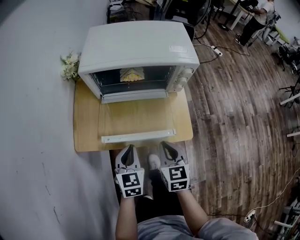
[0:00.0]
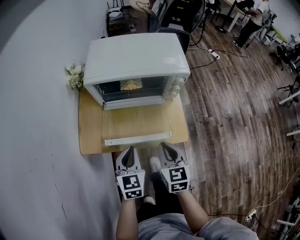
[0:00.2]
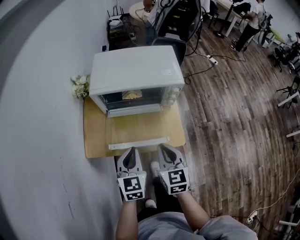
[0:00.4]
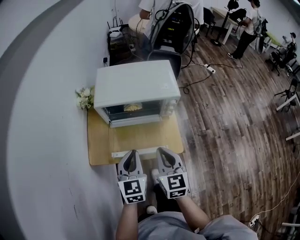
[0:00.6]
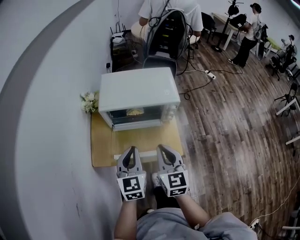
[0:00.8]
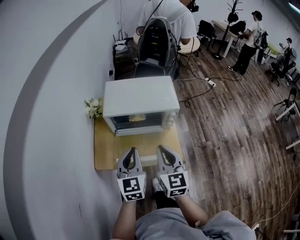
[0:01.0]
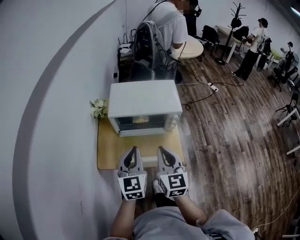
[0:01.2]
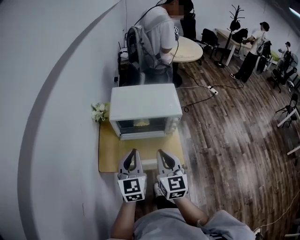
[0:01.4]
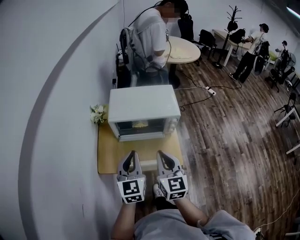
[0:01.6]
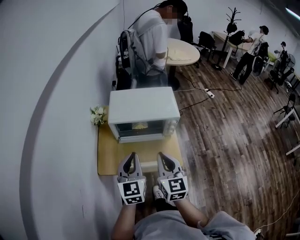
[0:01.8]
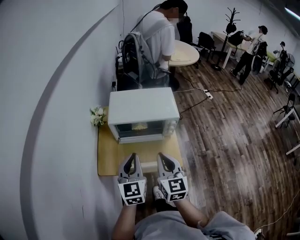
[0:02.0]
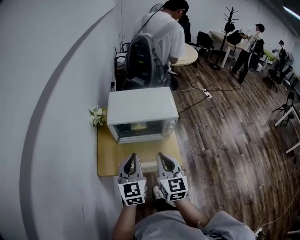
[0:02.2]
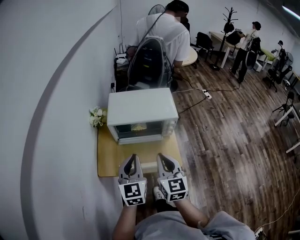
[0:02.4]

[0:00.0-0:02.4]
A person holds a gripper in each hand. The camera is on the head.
0:00.0 to 0:01.2: Both grippers travel together upward, about 30 cm. The right gripper swivels about 20 degrees; the left gripper turns by some 20 degrees.
0:01.2 to 0:02.4: The grippers stay close to where they were, moving slightly.

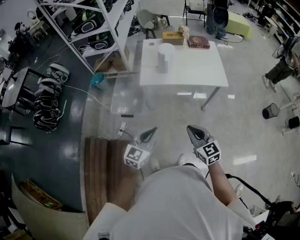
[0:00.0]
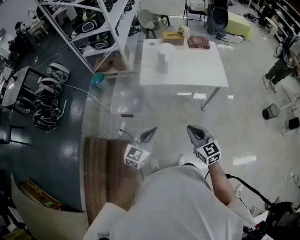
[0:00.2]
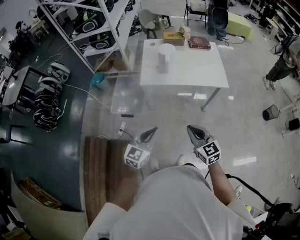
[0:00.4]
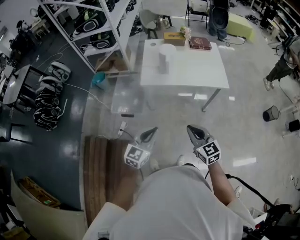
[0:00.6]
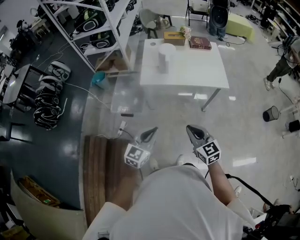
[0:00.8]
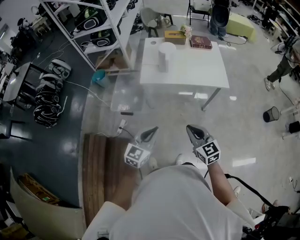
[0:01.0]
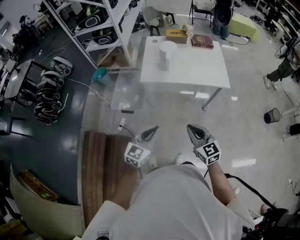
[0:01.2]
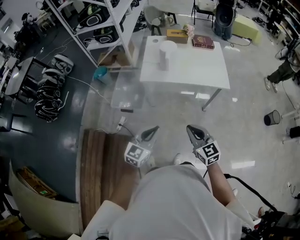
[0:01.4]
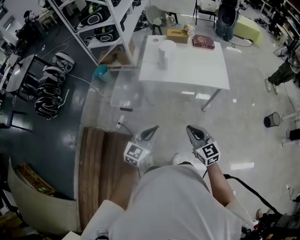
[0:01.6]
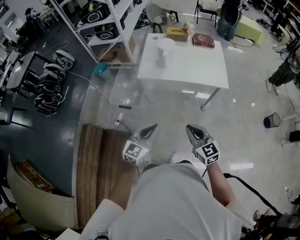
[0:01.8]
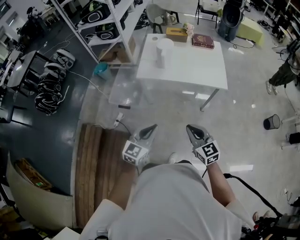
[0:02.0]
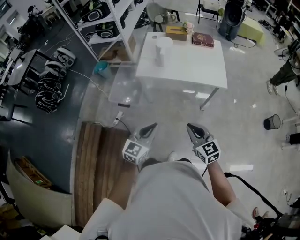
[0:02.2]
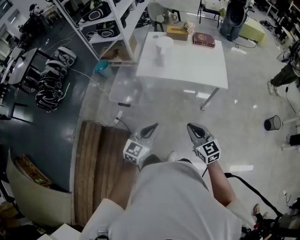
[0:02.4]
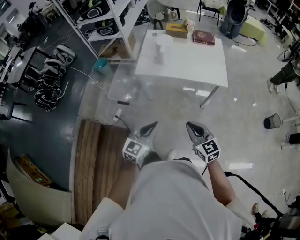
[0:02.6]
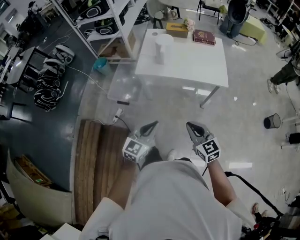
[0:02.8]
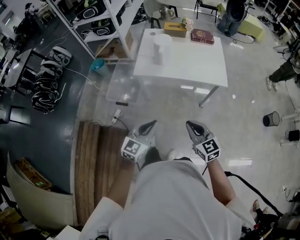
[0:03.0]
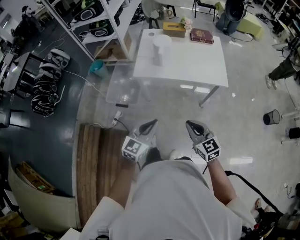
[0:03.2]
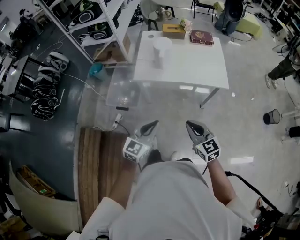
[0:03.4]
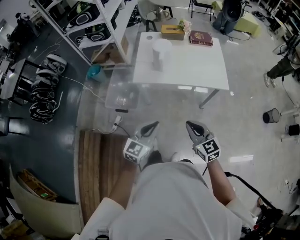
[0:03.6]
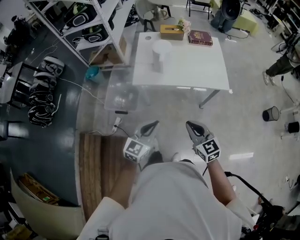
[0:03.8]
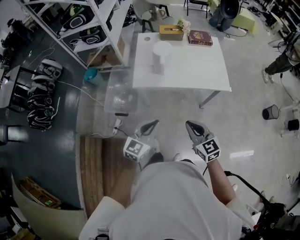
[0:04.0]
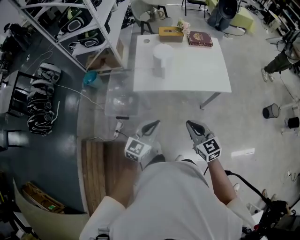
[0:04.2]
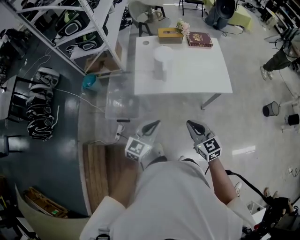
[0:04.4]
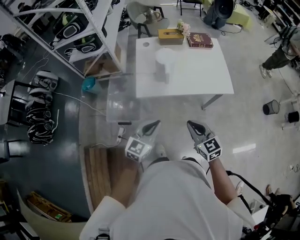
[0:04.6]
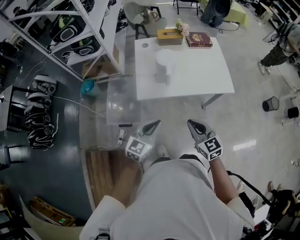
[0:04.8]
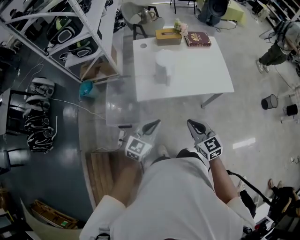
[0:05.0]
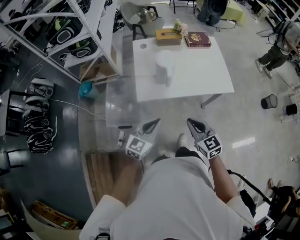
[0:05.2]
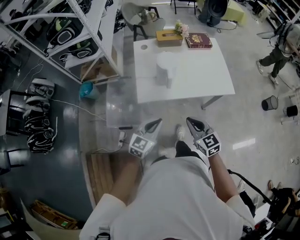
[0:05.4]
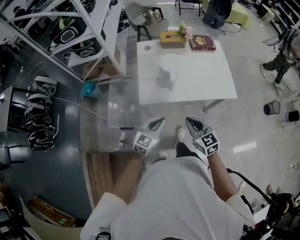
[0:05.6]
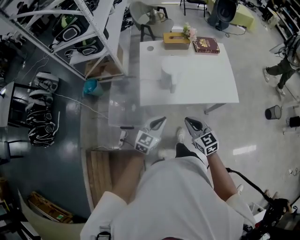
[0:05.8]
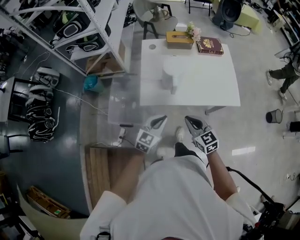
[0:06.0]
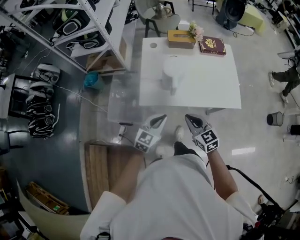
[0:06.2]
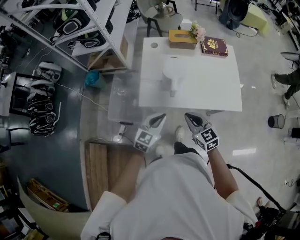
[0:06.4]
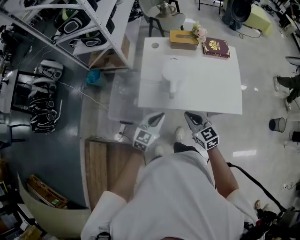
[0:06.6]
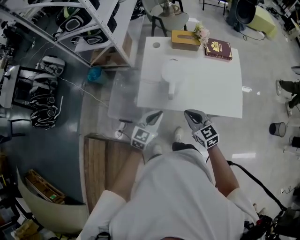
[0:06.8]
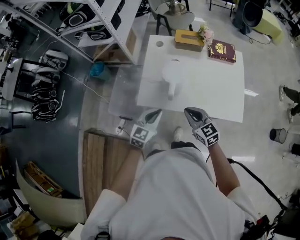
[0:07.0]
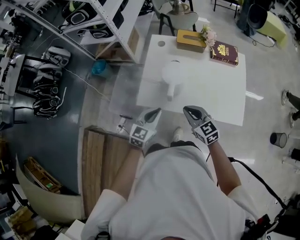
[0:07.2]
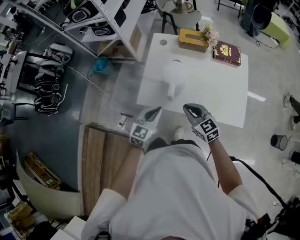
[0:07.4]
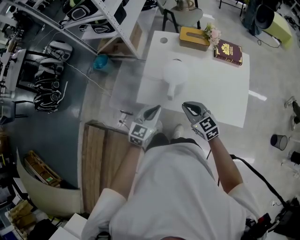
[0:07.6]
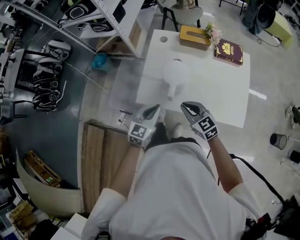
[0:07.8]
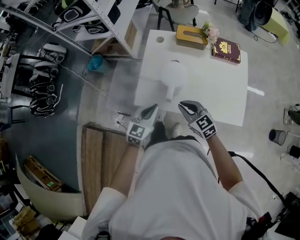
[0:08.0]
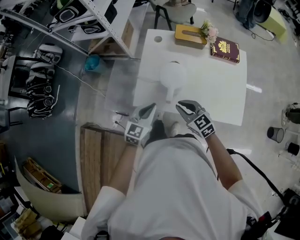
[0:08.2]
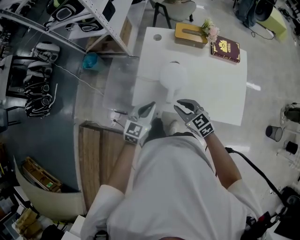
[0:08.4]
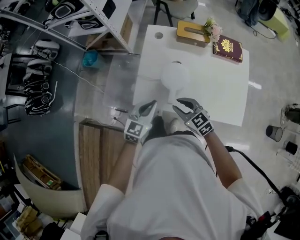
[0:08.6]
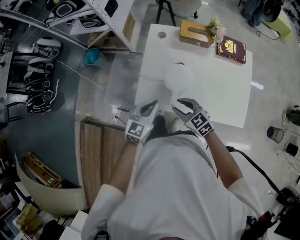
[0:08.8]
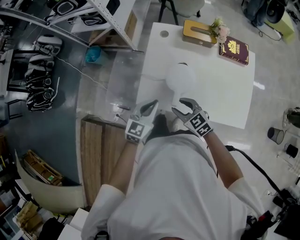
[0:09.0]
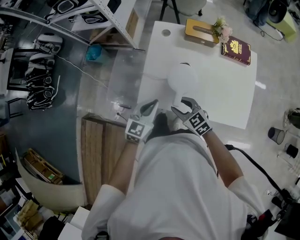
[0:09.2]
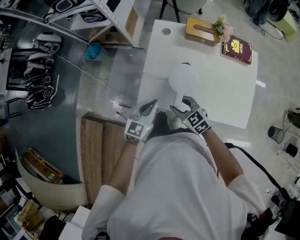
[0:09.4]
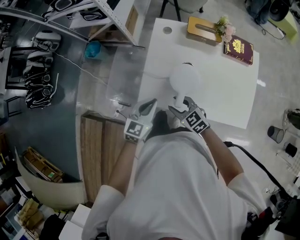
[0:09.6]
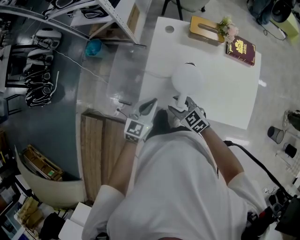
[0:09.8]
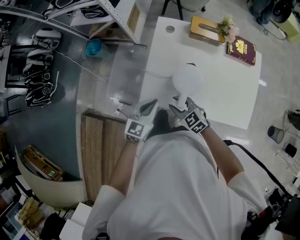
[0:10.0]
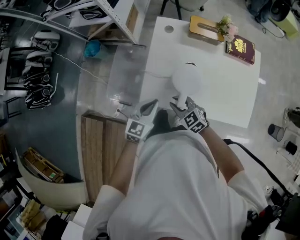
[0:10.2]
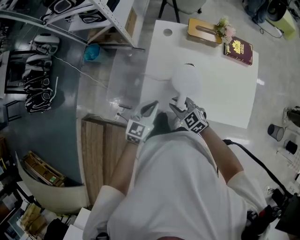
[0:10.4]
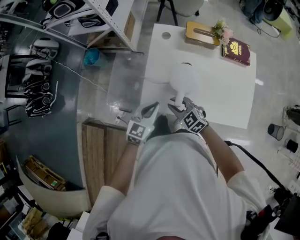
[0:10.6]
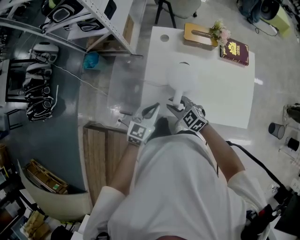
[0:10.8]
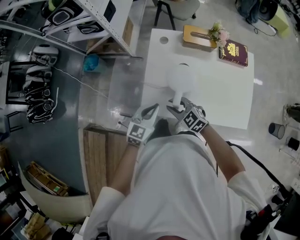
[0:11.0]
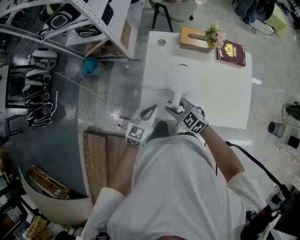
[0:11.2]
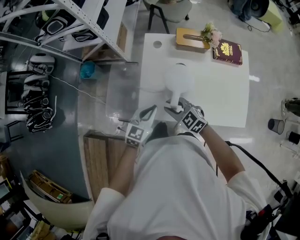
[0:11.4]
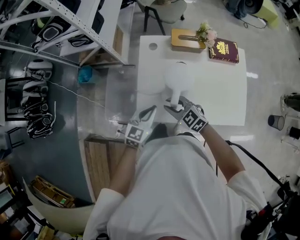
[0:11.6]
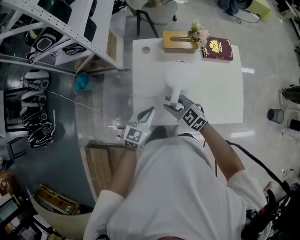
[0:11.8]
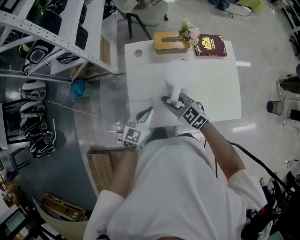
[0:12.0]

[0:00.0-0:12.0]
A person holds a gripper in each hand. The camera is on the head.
0:00.0 to 0:01.6: The two grippers go approximately 5 cm to the right.
0:01.6 to 0:03.0: The right gripper shifts by approximately 5 cm. Meanwhile the left gripper ends up roughly 5 cm from where it was.
0:03.0 to 0:04.4: Both grippers travel together forward and to the left, roughly 20 cm.
0:04.4 to 0:06.0: The right gripper moves forward, some 15 cm. The left gripper goes approximately 15 cm forward and downward.
0:06.0 to 0:07.6: The grippers both shift forward by roughly 15 cm.
0:07.6 to 0:09.0: The right gripper travels downward, forward and to the left by about 10 cm, and opens up. The left gripper goes some 10 cm forward.
0:09.0 to 0:10.4: The right gripper changes place by roughly 5 cm, and closes.
0:10.4 to 0:12.0: The right gripper shifts roughly 15 cm to the right, forward and upward, while the left gripper is displaced to the right and forward by roughly 10 cm.

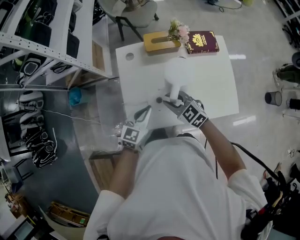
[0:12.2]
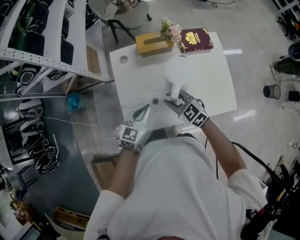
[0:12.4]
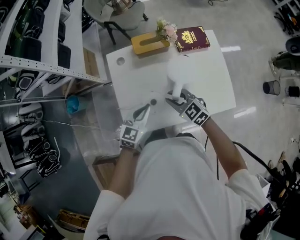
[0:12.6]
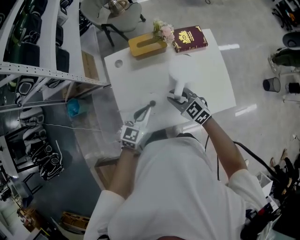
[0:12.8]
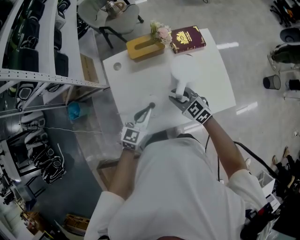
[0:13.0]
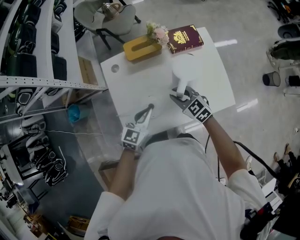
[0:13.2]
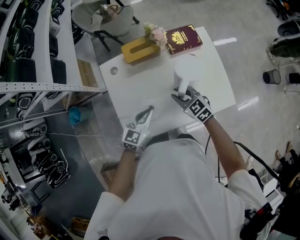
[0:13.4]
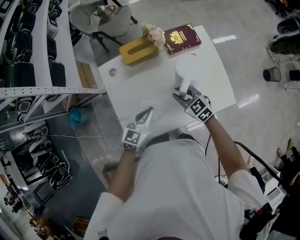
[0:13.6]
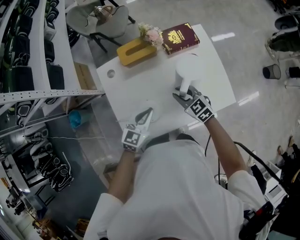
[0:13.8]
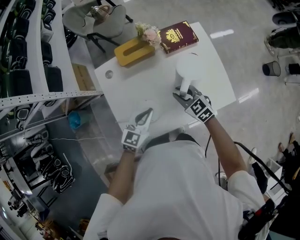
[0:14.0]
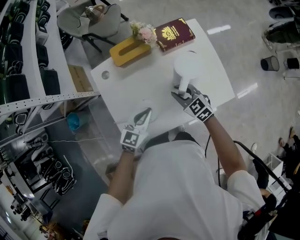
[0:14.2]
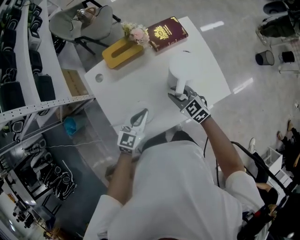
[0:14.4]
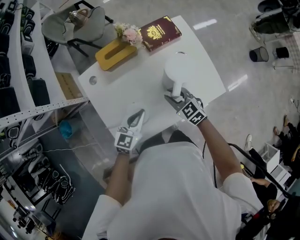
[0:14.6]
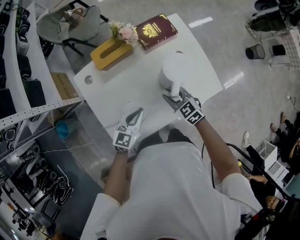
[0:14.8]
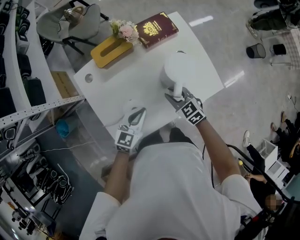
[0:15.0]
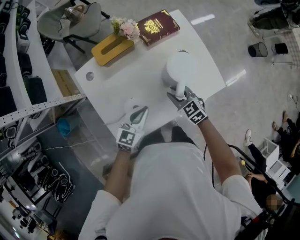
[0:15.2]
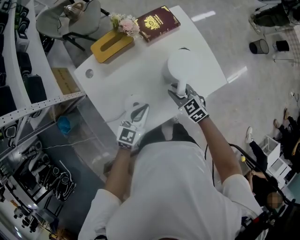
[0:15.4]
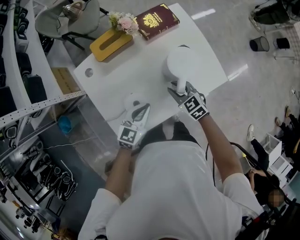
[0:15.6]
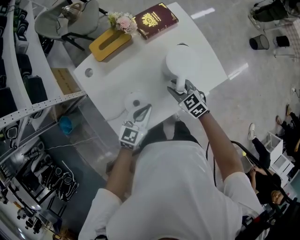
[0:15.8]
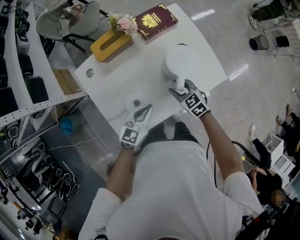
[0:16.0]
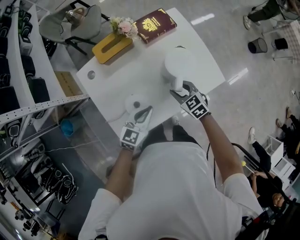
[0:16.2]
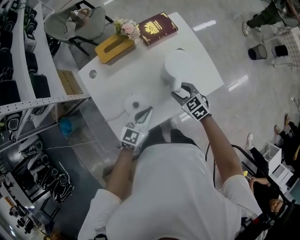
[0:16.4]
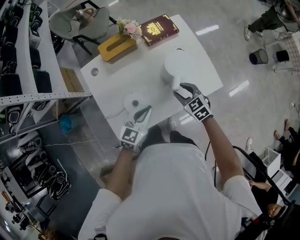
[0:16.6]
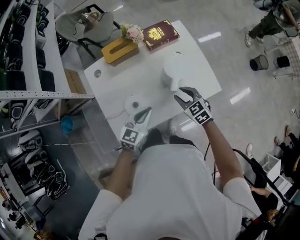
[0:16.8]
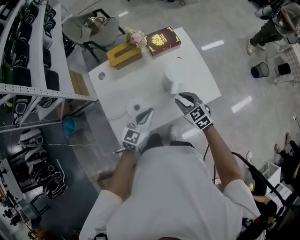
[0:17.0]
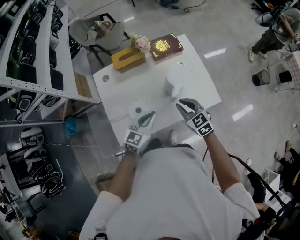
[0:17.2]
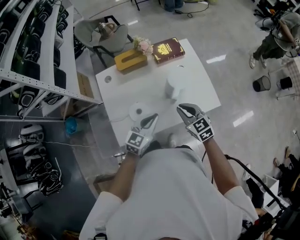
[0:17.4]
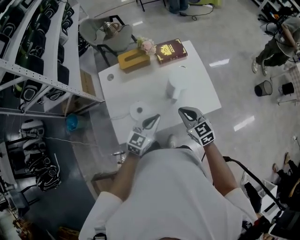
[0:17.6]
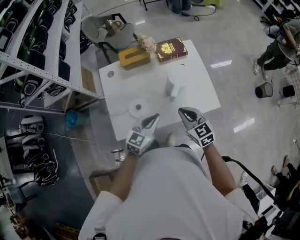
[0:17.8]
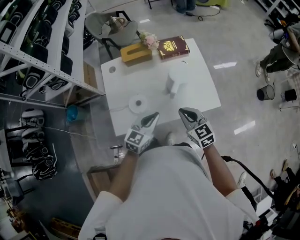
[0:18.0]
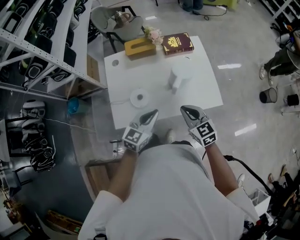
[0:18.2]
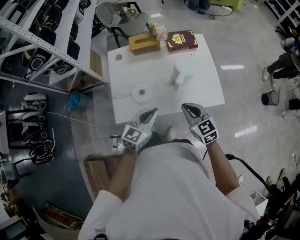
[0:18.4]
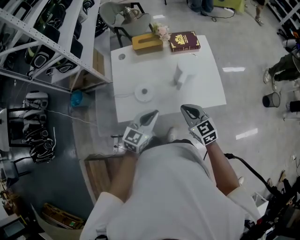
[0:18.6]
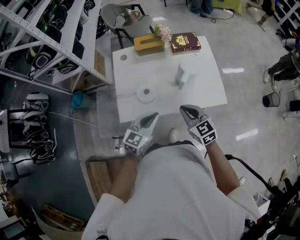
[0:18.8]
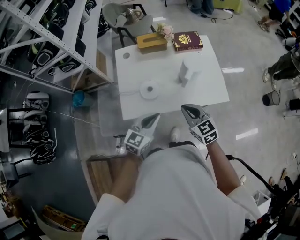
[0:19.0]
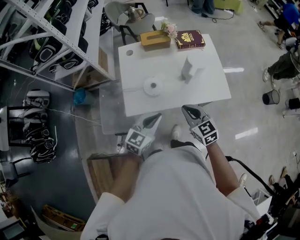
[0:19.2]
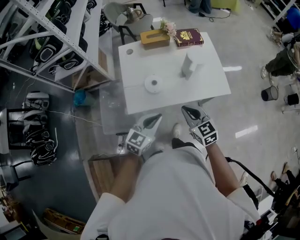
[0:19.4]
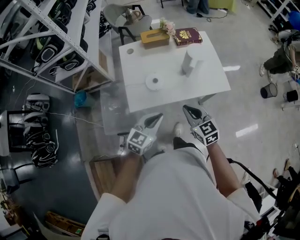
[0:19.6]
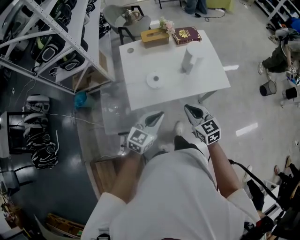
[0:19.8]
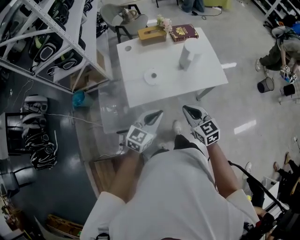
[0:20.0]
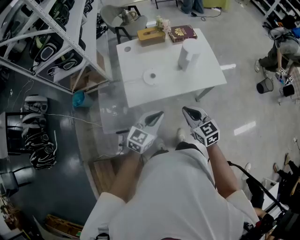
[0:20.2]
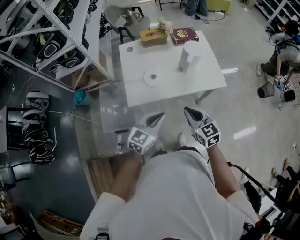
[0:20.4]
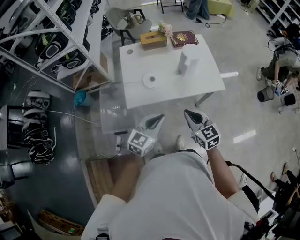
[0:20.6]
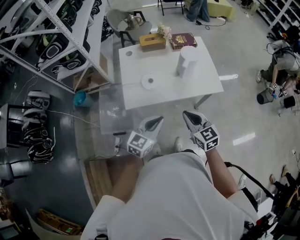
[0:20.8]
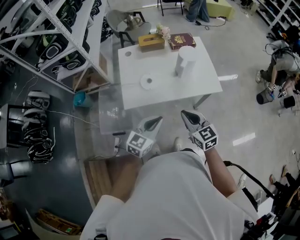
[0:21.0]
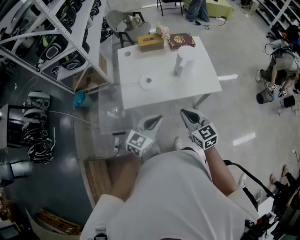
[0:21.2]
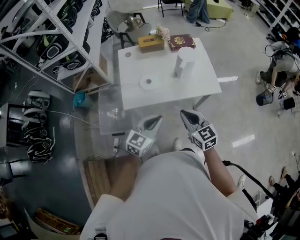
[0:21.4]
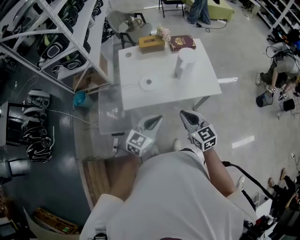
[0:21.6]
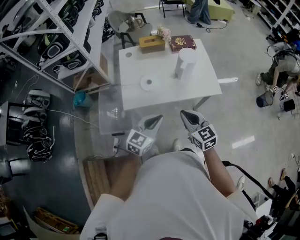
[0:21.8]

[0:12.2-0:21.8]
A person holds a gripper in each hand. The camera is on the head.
0:12.2 to 0:13.8: The left gripper is displaced to the right by some 10 cm; the right gripper travels to the right and forward by about 15 cm, and turns by about 20 degrees.
0:13.8 to 0:15.4: The left gripper moves about 5 cm; the right gripper goes about 5 cm downward.
0:15.4 to 0:17.0: The right gripper goes about 10 cm upward, backward and to the right. The left gripper shifts roughly 10 cm upward and backward.
0:17.0 to 0:18.6: The left gripper is displaced backward by some 10 cm; the right gripper goes approximately 15 cm backward and upward, and closes its fingers.
0:18.6 to 0:20.2: Both grippers travel together backward and to the left, about 20 cm.
0:20.2 to 0:21.8: Both grippers travel together to the right, some 5 cm.
